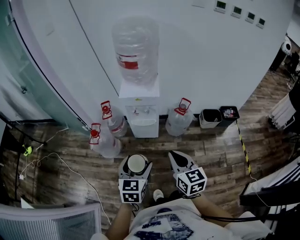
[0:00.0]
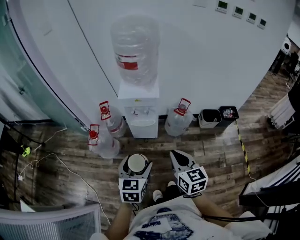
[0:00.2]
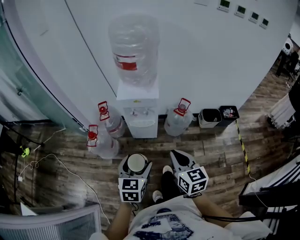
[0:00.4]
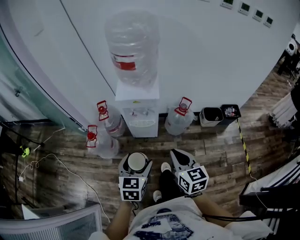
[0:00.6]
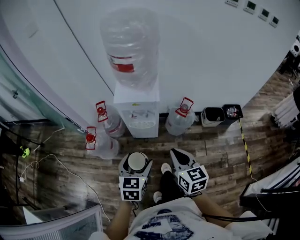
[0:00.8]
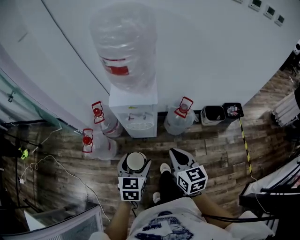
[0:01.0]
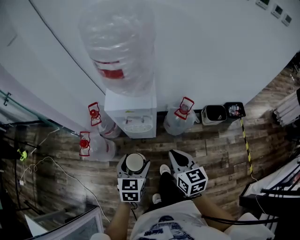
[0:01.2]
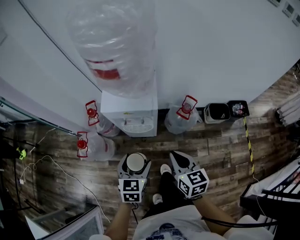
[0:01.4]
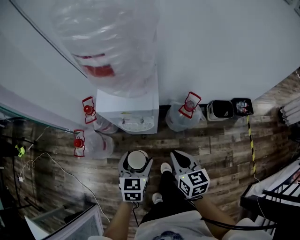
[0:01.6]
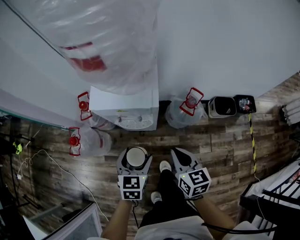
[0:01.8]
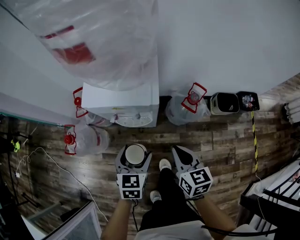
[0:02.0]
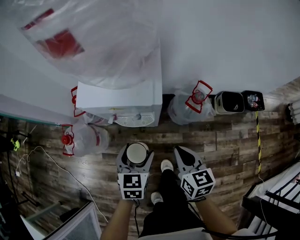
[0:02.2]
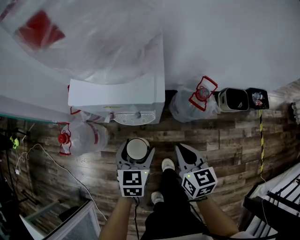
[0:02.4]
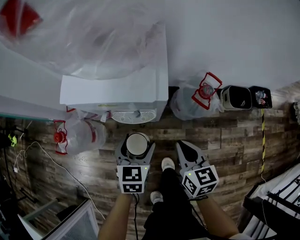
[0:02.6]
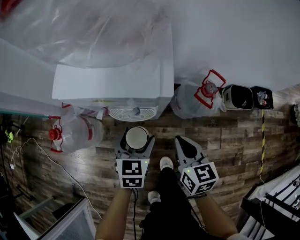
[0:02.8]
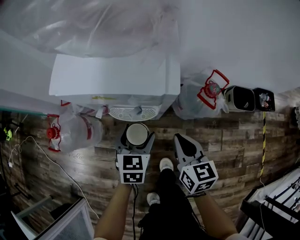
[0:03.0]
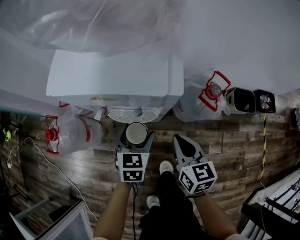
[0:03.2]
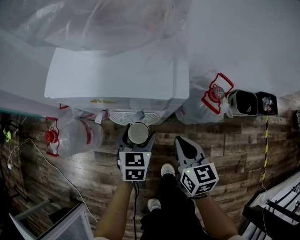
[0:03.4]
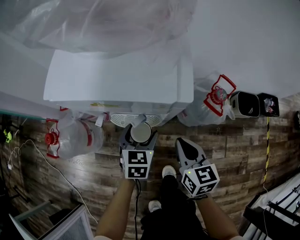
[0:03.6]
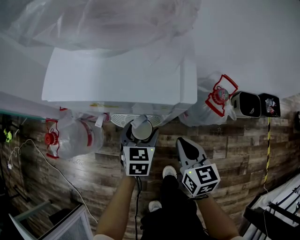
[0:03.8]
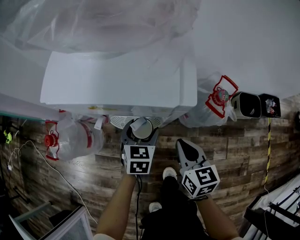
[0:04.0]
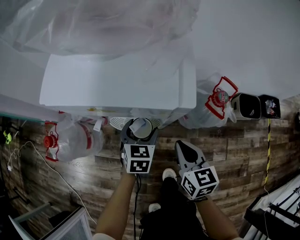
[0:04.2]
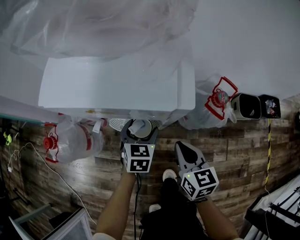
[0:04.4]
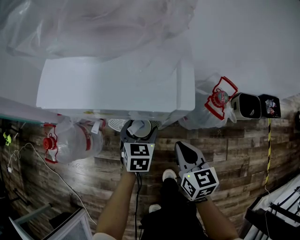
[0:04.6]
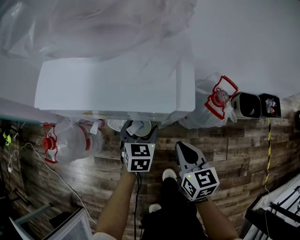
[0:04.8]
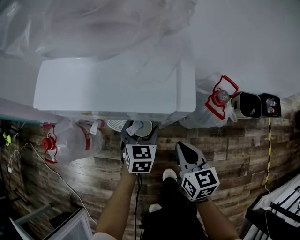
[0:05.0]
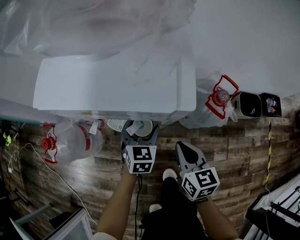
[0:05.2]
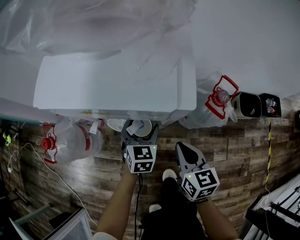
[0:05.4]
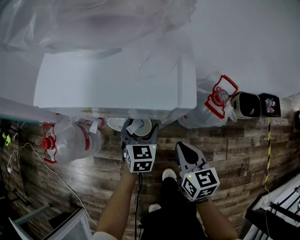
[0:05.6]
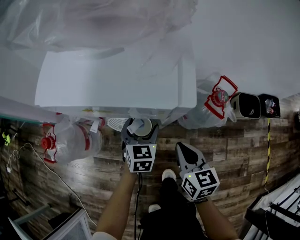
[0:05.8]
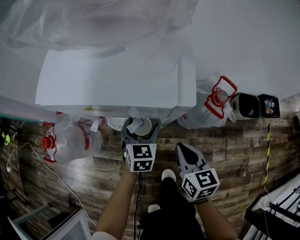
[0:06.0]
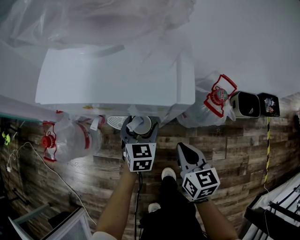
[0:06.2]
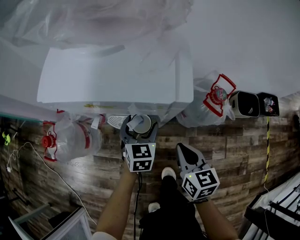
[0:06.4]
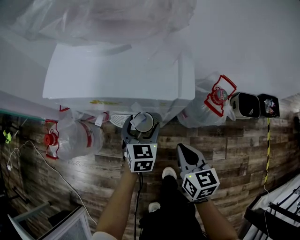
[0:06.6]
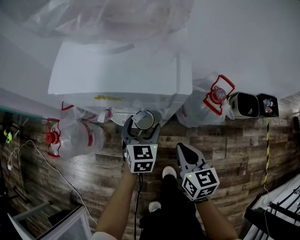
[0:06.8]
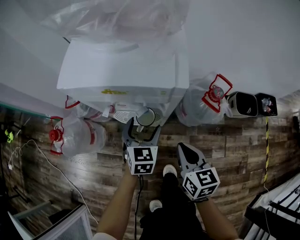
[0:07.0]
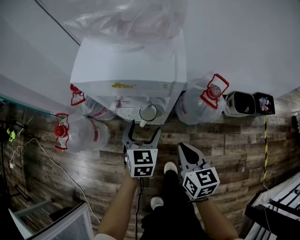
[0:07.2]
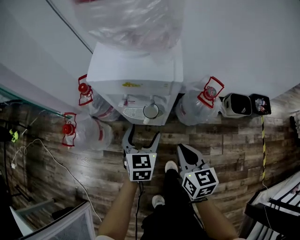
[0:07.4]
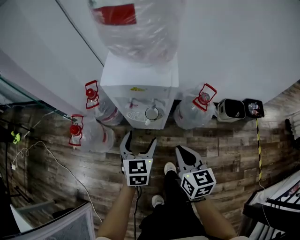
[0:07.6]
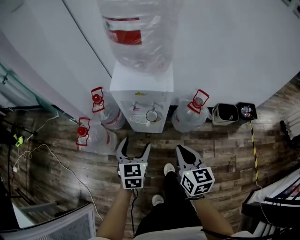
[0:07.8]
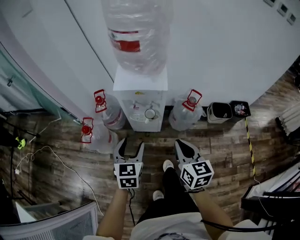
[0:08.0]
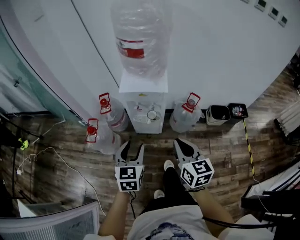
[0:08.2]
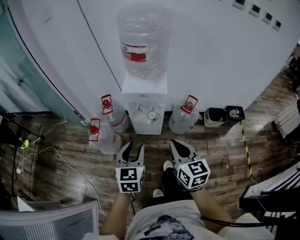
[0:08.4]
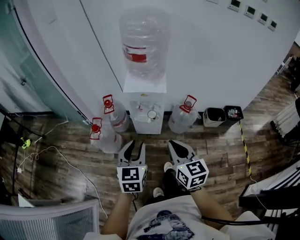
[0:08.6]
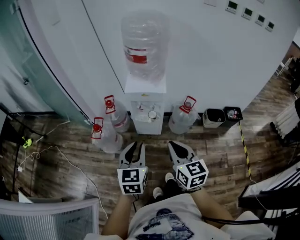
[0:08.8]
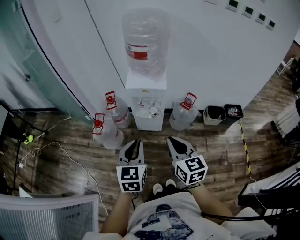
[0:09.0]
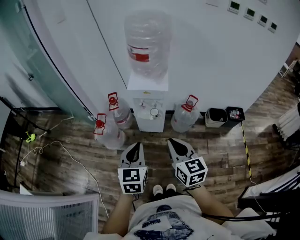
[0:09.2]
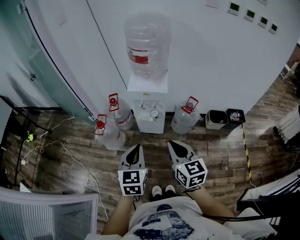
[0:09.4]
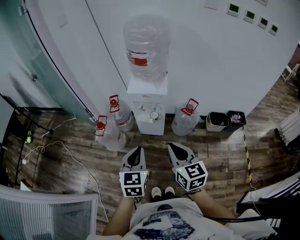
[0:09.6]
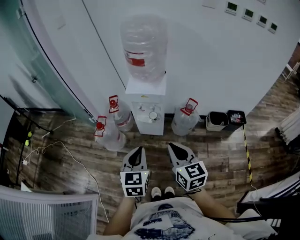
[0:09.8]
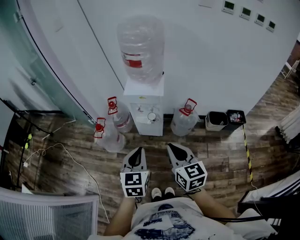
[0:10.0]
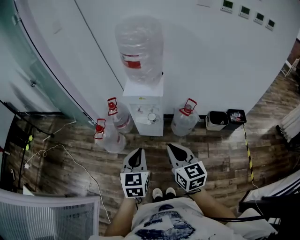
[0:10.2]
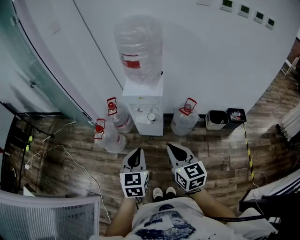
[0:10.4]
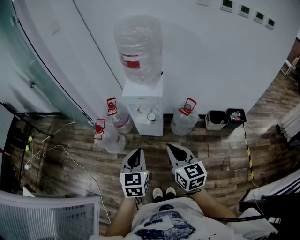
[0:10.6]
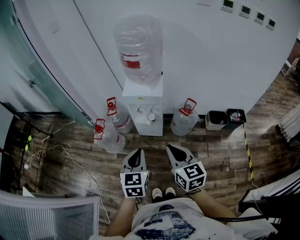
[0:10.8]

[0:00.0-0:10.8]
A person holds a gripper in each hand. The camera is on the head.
0:00.0 to 0:01.6: Both grippers travel together forward and downward, roughly 30 cm.
0:01.6 to 0:03.0: The grippers both shift downward and forward by about 25 cm.
0:03.0 to 0:04.6: The left gripper moves downward and forward, some 10 cm. Meanwhile the right gripper travels downward by roughly 5 cm.
0:04.6 to 0:06.2: The grippers stay close to where they were, moving slightly.
0:06.2 to 0:07.8: Both grippers move upward and backward, roughly 35 cm.
0:07.8 to 0:09.2: Both grippers travel together upward and backward, some 30 cm. The left gripper closes up.
0:09.2 to 0:10.8: The left gripper travels to the right by some 5 cm.

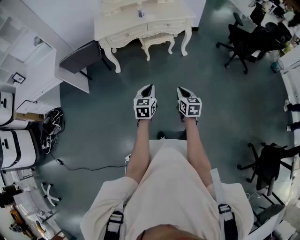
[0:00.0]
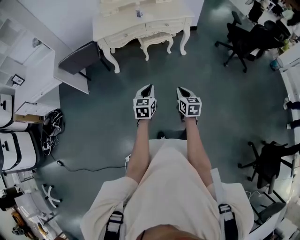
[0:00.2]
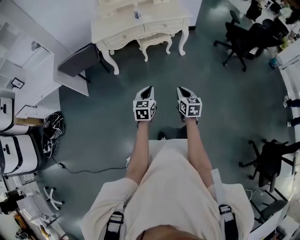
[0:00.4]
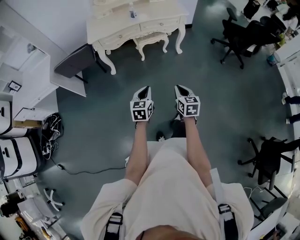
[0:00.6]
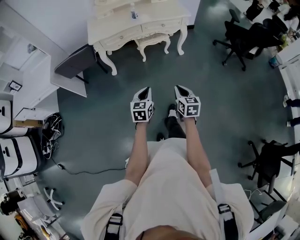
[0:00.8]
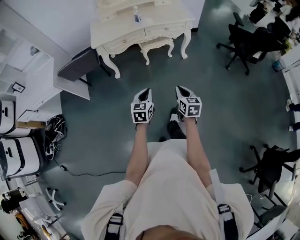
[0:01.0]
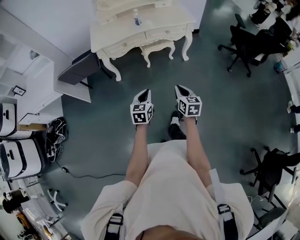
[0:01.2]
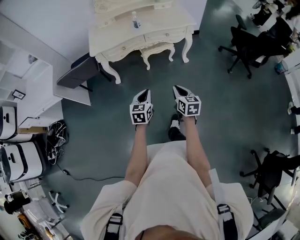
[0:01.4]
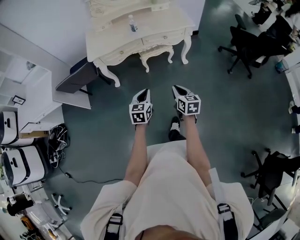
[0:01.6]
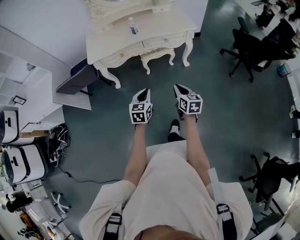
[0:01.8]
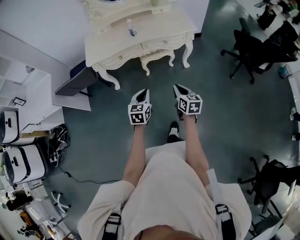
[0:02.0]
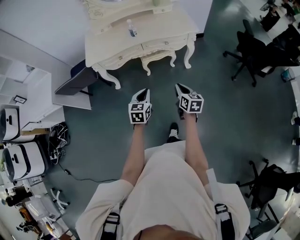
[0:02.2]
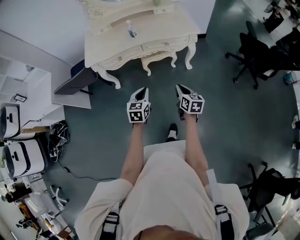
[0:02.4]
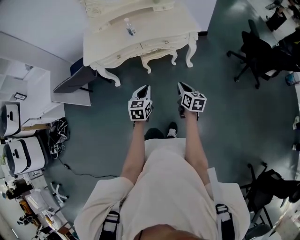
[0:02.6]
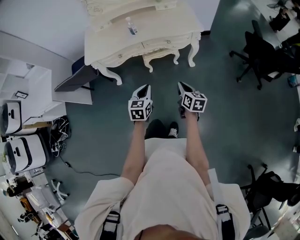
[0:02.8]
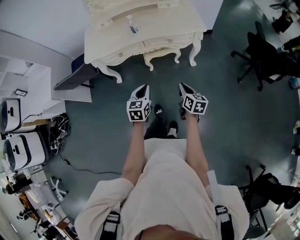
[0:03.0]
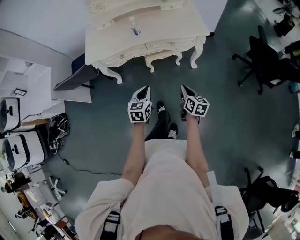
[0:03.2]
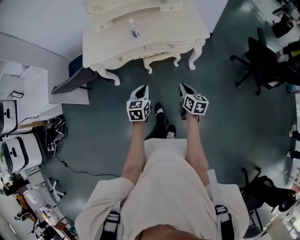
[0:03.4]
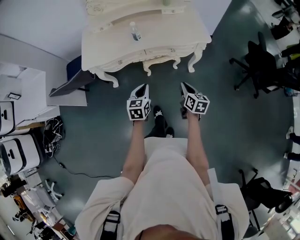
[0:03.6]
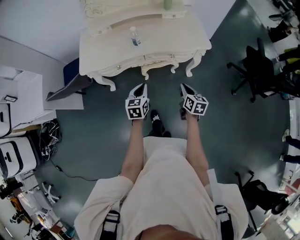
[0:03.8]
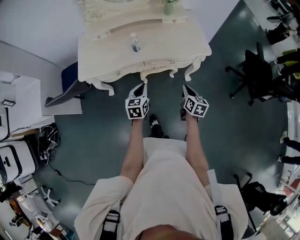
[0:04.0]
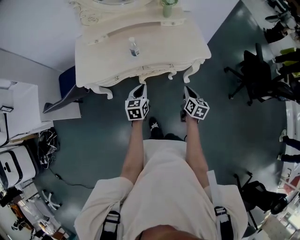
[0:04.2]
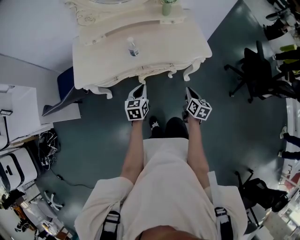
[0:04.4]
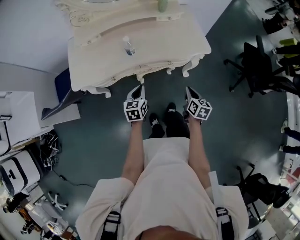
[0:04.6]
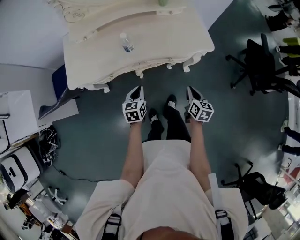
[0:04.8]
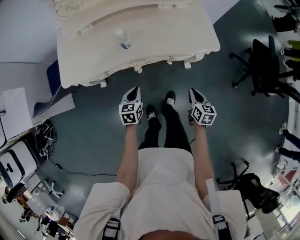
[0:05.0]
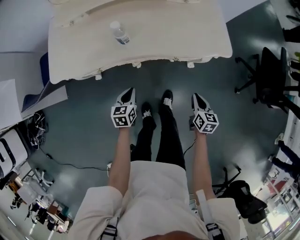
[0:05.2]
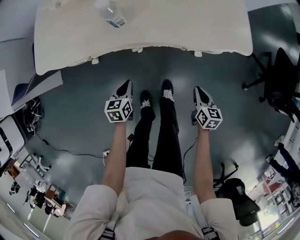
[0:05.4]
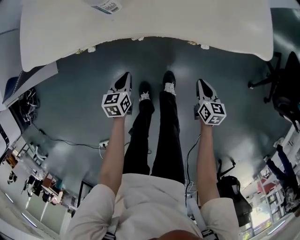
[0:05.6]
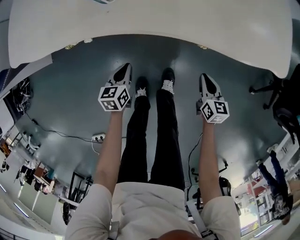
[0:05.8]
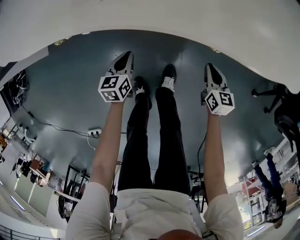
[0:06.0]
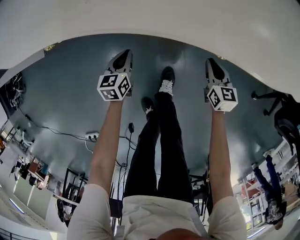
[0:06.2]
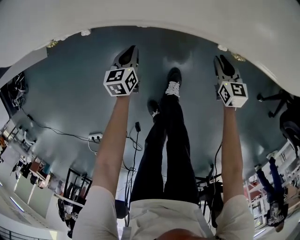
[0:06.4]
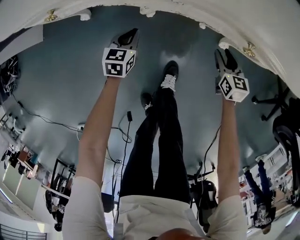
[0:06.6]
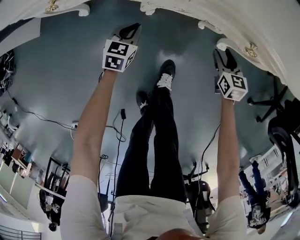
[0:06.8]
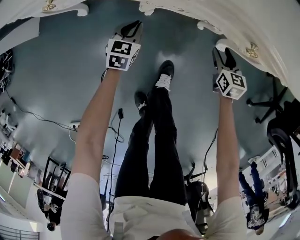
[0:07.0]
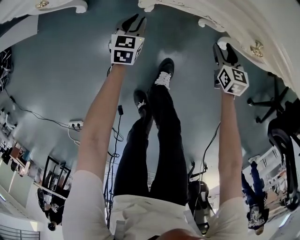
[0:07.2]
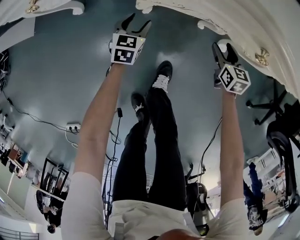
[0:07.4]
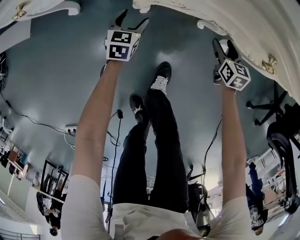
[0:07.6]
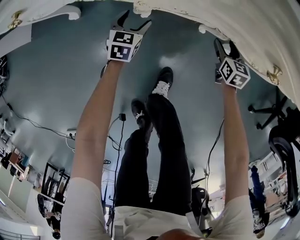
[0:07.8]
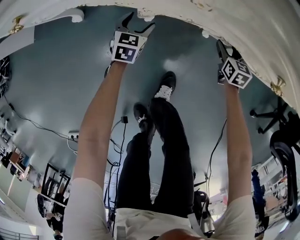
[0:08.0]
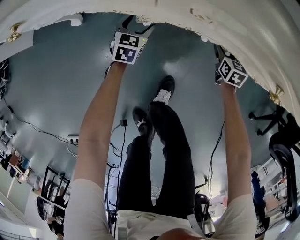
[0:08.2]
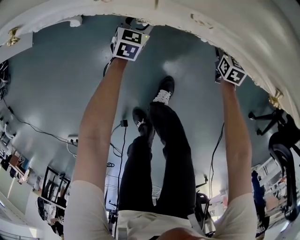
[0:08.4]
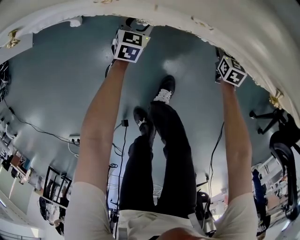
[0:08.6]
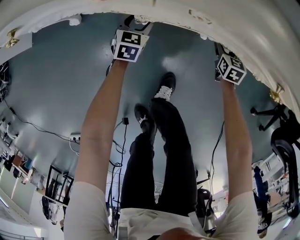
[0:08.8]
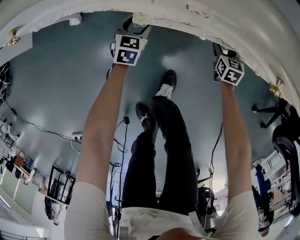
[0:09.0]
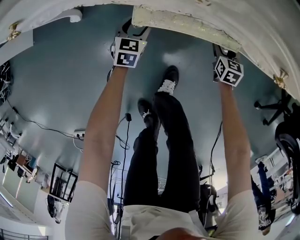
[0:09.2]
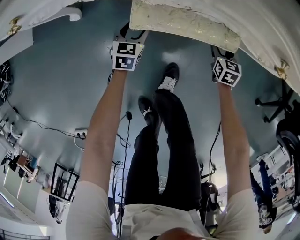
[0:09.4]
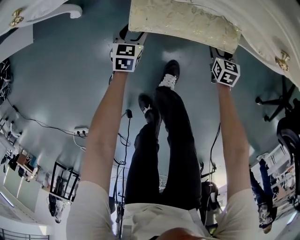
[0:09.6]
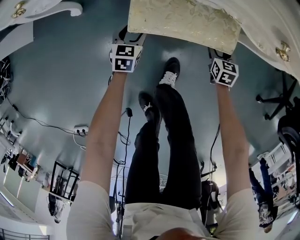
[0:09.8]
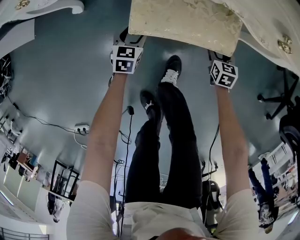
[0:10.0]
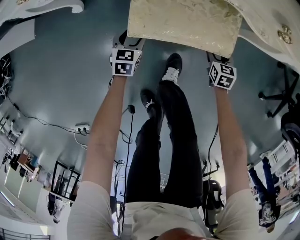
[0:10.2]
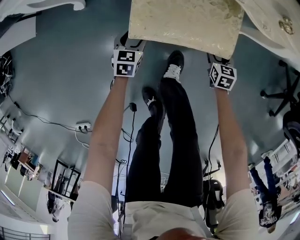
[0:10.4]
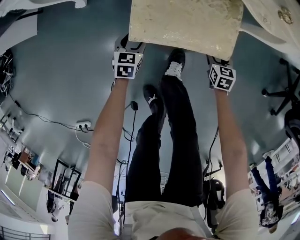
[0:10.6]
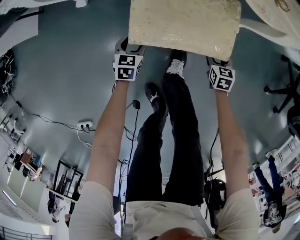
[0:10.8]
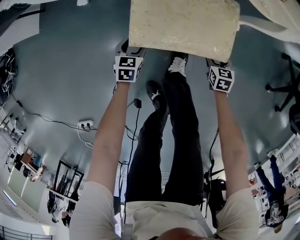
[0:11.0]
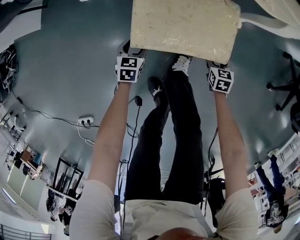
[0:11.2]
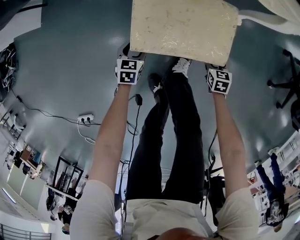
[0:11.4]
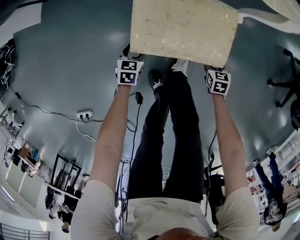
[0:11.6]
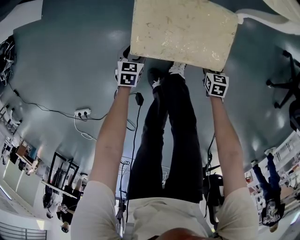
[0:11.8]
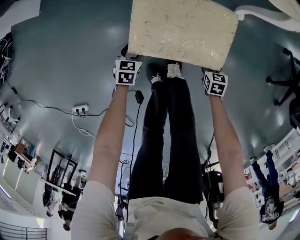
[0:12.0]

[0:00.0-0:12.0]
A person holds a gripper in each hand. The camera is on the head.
0:00.0 to 0:01.6: Both grippers move forward, approximately 20 cm.
0:01.6 to 0:03.0: The grippers both shift forward and to the right by about 20 cm.
0:03.0 to 0:04.4: The grippers both shift forward by roughly 25 cm.
0:04.4 to 0:06.0: Both grippers move downward, approximately 40 cm. The left gripper swivels approximately 20 degrees. The right gripper changes its angle by roughly 30 degrees.
0:06.0 to 0:07.6: The grippers both shift downward and forward by approximately 20 cm. The right gripper opens. Meanwhile the left gripper opens.
0:07.6 to 0:09.0: The right gripper travels downward by some 5 cm.
0:09.0 to 0:10.4: The grippers both shift backward by roughly 20 cm.
0:10.4 to 0:12.0: The grippers both shift backward by roughly 25 cm.

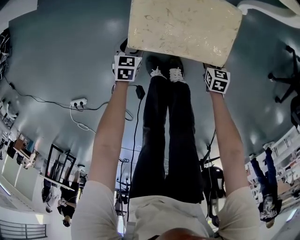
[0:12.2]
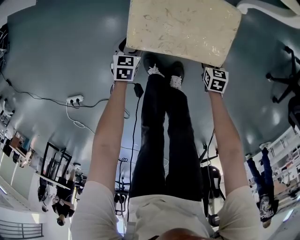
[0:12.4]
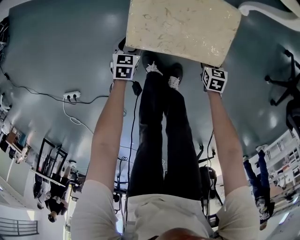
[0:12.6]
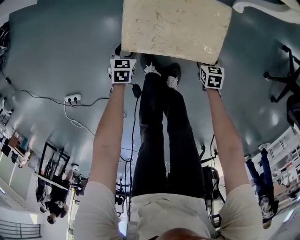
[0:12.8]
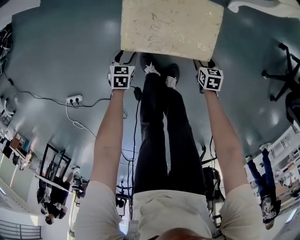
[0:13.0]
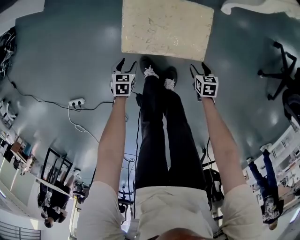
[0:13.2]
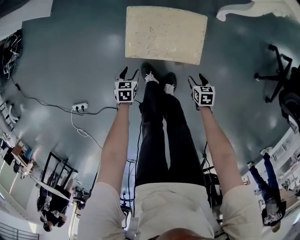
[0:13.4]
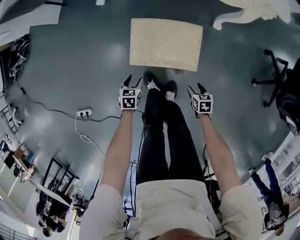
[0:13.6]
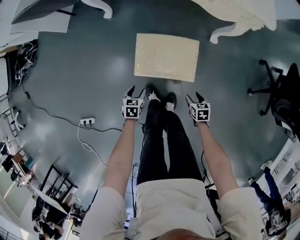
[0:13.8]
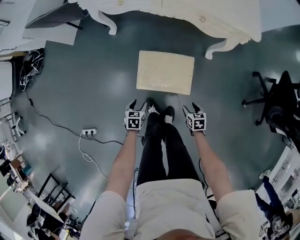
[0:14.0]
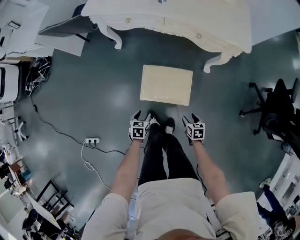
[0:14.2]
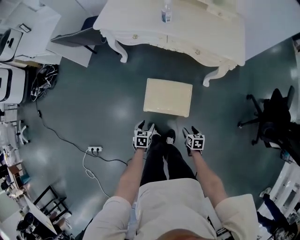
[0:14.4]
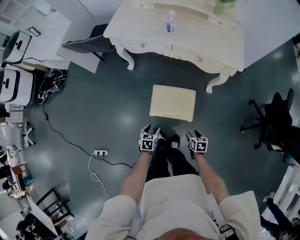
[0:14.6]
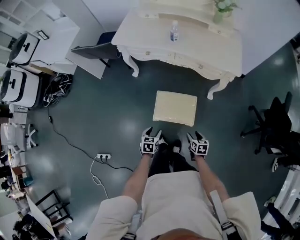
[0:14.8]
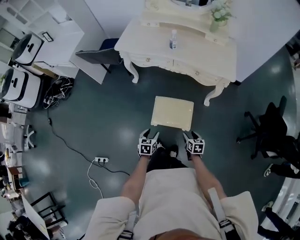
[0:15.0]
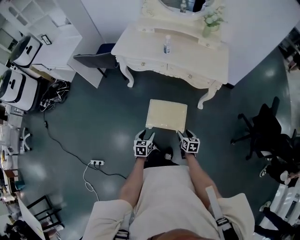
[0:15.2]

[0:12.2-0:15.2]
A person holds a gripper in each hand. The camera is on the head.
0:12.2 to 0:13.8: Both grippers travel together upward and backward, approximately 25 cm.
0:13.8 to 0:15.2: The two grippers go about 30 cm upward. The right gripper changes its angle by approximately 20 degrees.
